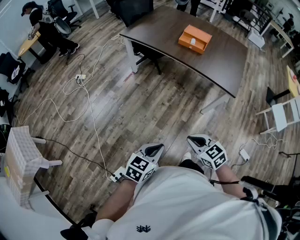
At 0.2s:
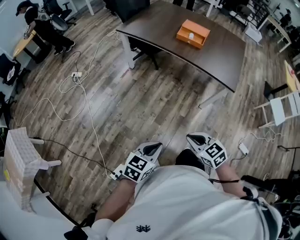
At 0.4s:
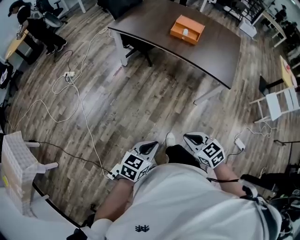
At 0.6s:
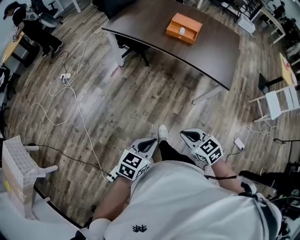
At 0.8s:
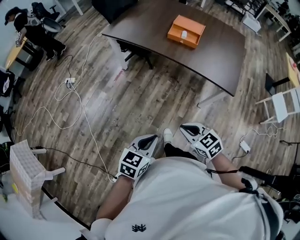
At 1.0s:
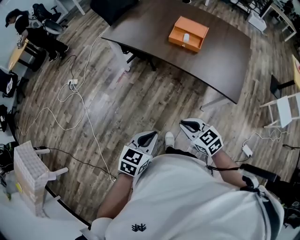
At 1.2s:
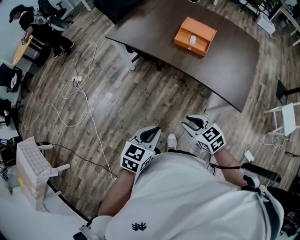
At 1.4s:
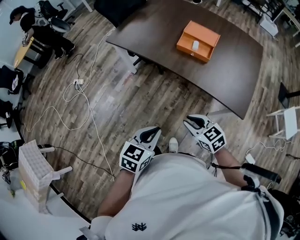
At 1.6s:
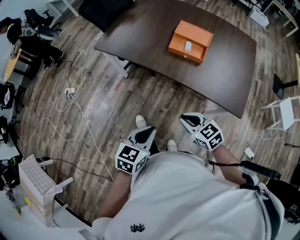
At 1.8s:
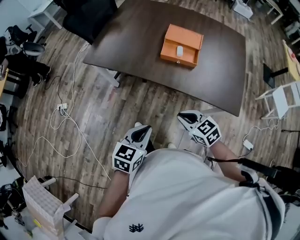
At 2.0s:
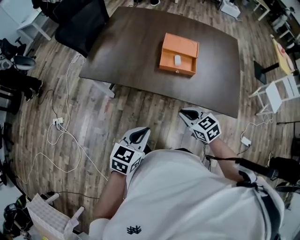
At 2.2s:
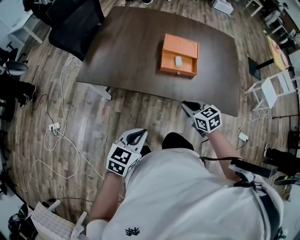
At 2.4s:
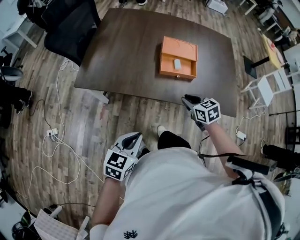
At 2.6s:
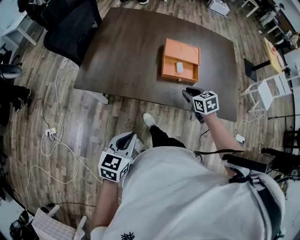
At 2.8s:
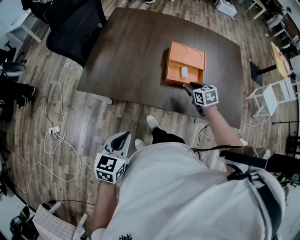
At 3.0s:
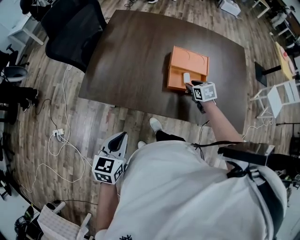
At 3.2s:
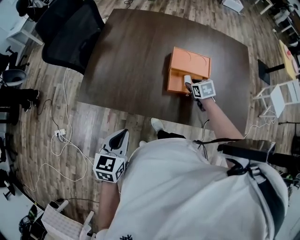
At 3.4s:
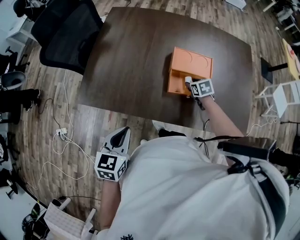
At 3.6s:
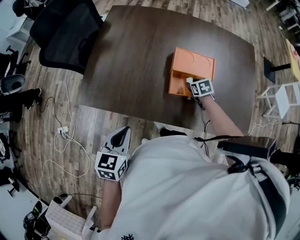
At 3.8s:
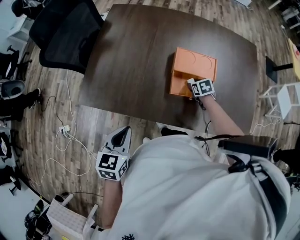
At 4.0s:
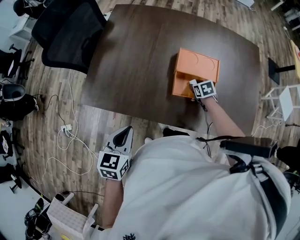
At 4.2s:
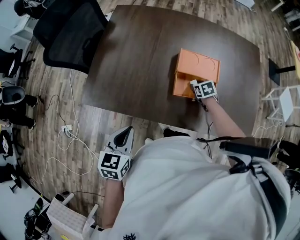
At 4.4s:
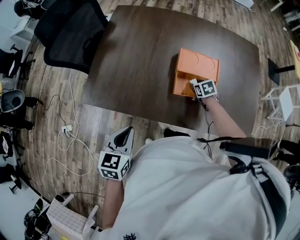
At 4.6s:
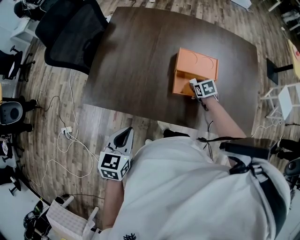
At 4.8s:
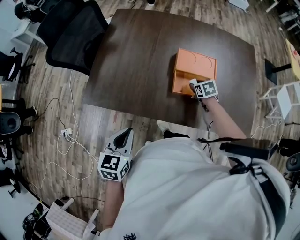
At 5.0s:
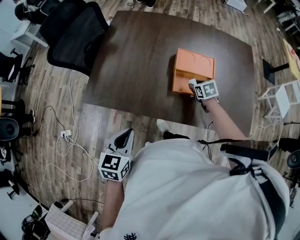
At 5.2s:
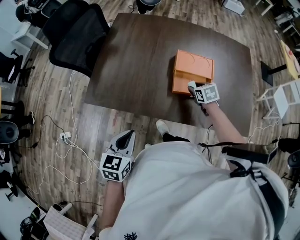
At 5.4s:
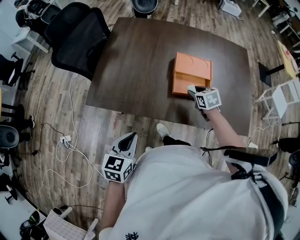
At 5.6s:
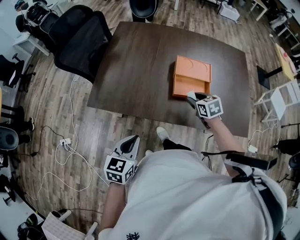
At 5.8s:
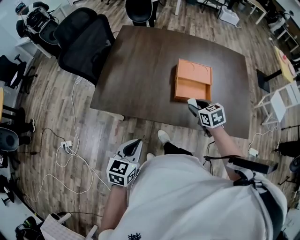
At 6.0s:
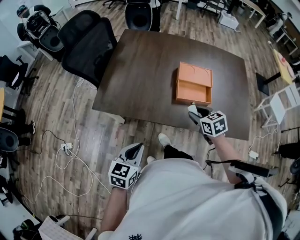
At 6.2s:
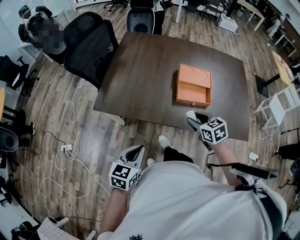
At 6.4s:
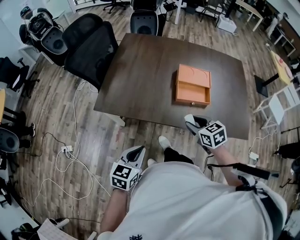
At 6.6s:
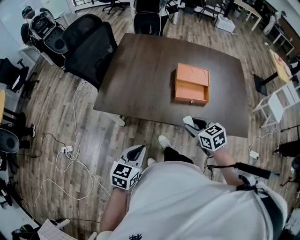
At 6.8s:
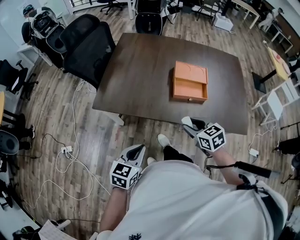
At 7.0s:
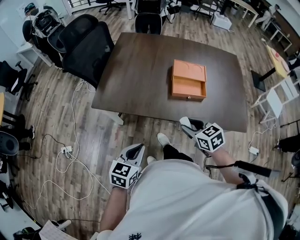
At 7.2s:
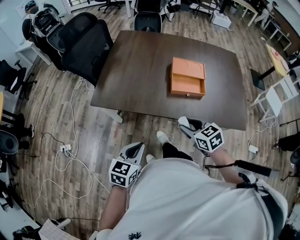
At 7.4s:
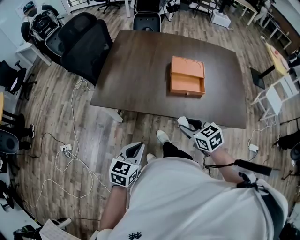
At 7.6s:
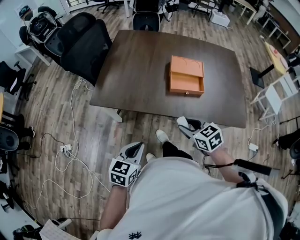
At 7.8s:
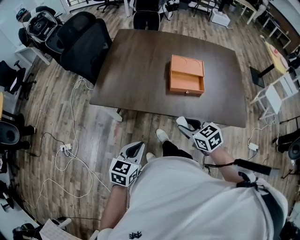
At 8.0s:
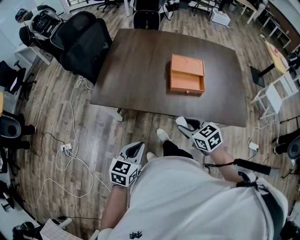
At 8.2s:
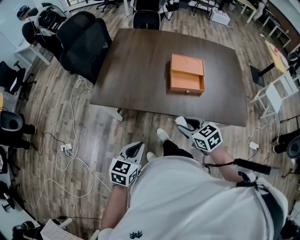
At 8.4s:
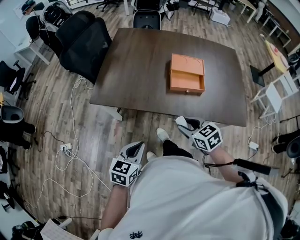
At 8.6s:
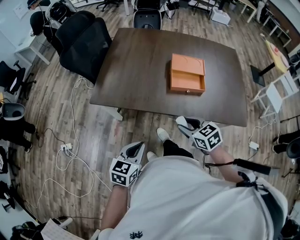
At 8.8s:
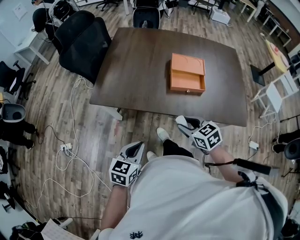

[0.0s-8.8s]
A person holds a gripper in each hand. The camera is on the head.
0.0s to 1.4s: The grippers both shift forward by approximately 35 cm.
1.4s to 3.0s: Both grippers are carried approximately 50 cm. The right gripper rotates about 40 degrees.
3.0s to 4.4s: The right gripper heads downward and forward, covering about 10 cm. Meanwhile the left gripper goes some 10 cm forward.
4.4s to 5.8s: The left gripper goes some 10 cm backward. The right gripper travels backward, upward and to the left by roughly 25 cm.
5.8s to 7.4s: The left gripper shifts some 10 cm backward. Meanwhile the right gripper shifts approximately 20 cm backward.
7.4s to 8.8s: There are only small adjustments of the grippers.

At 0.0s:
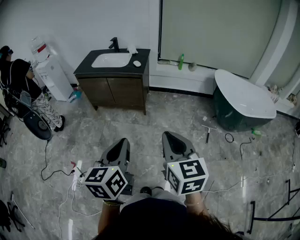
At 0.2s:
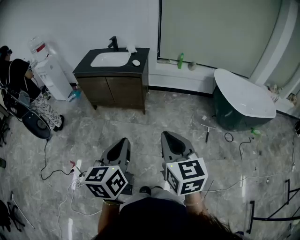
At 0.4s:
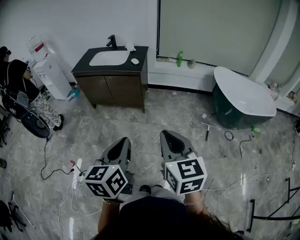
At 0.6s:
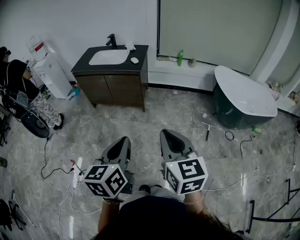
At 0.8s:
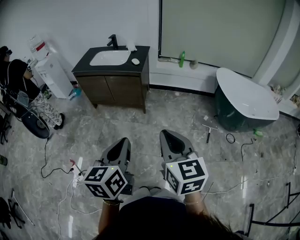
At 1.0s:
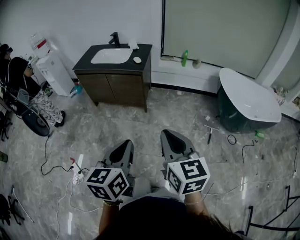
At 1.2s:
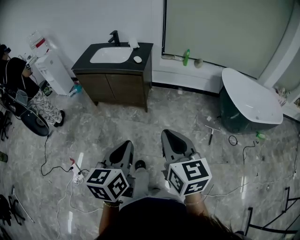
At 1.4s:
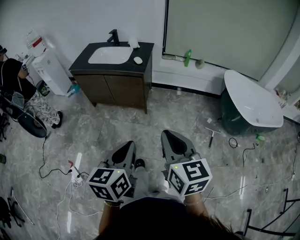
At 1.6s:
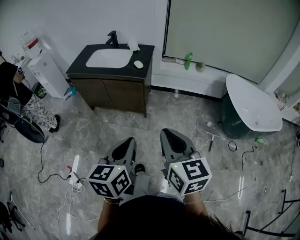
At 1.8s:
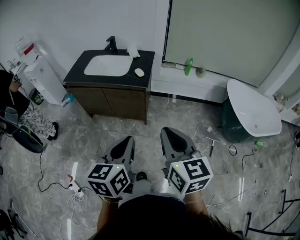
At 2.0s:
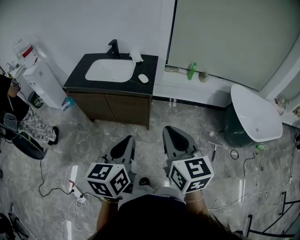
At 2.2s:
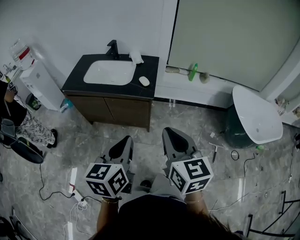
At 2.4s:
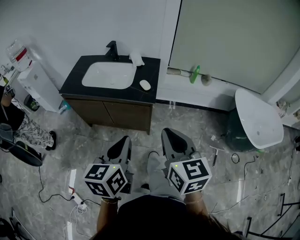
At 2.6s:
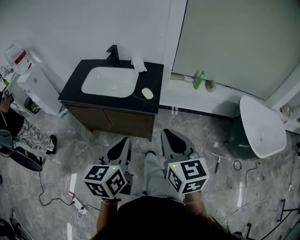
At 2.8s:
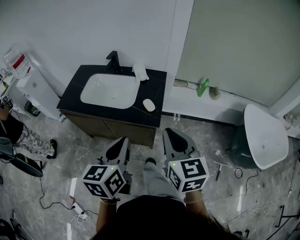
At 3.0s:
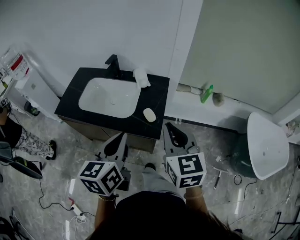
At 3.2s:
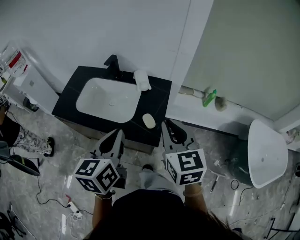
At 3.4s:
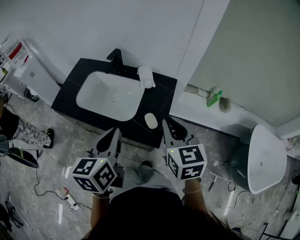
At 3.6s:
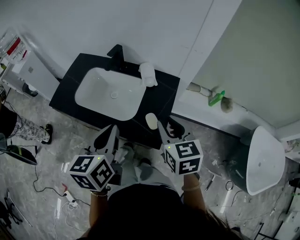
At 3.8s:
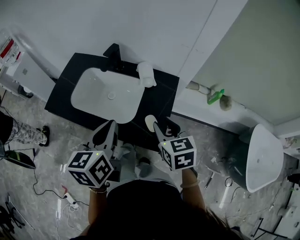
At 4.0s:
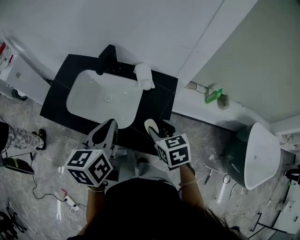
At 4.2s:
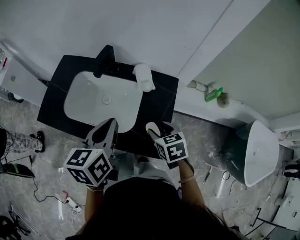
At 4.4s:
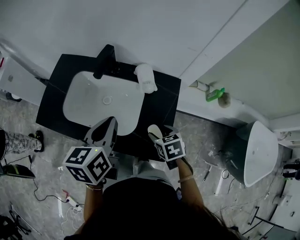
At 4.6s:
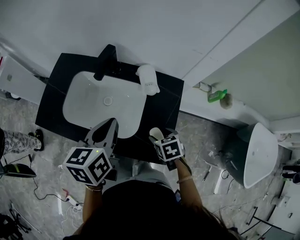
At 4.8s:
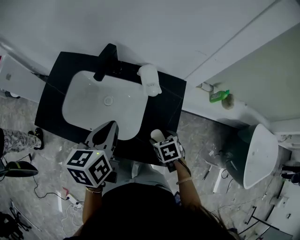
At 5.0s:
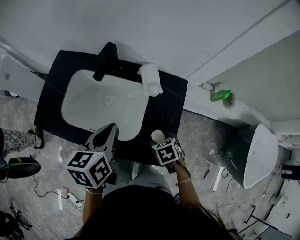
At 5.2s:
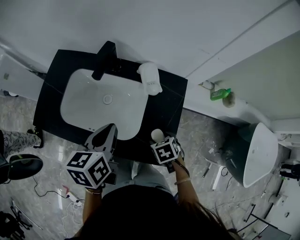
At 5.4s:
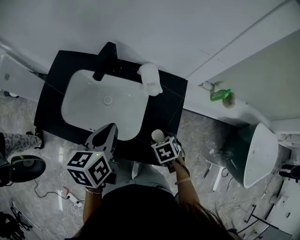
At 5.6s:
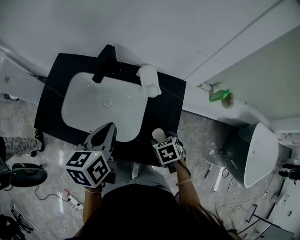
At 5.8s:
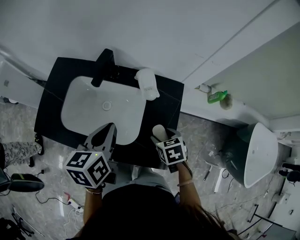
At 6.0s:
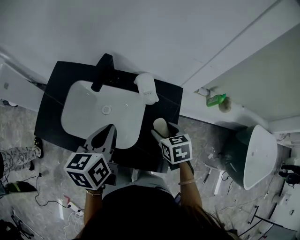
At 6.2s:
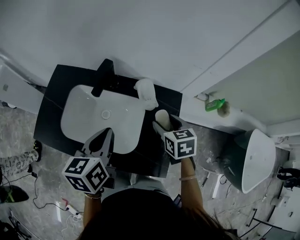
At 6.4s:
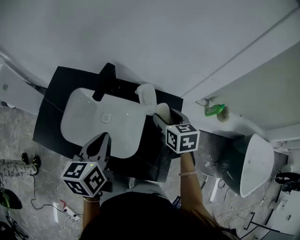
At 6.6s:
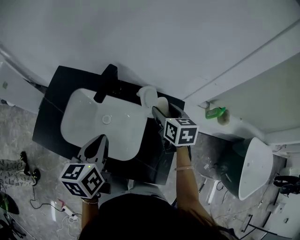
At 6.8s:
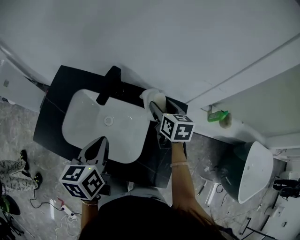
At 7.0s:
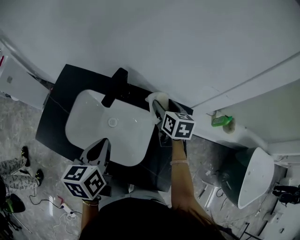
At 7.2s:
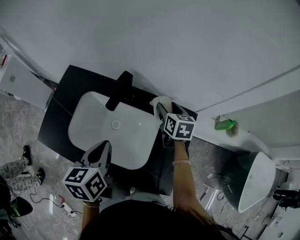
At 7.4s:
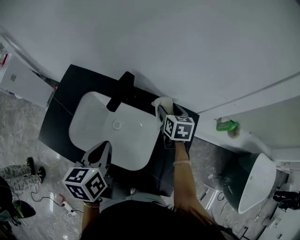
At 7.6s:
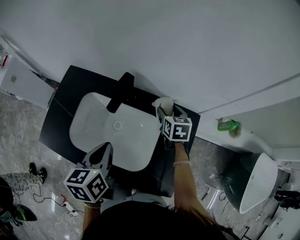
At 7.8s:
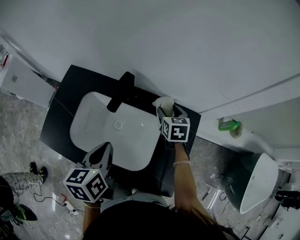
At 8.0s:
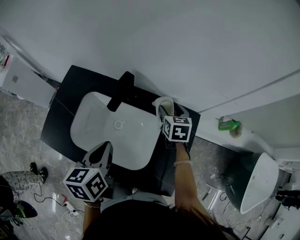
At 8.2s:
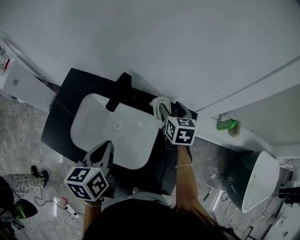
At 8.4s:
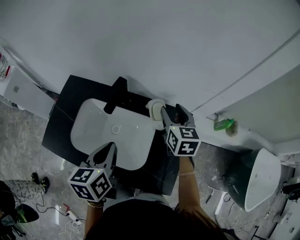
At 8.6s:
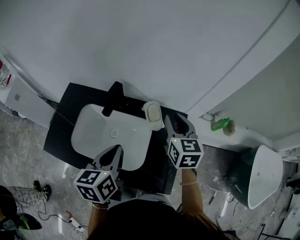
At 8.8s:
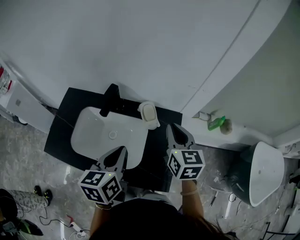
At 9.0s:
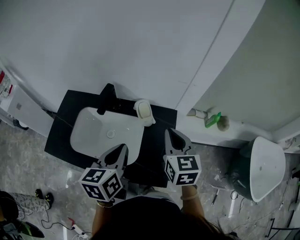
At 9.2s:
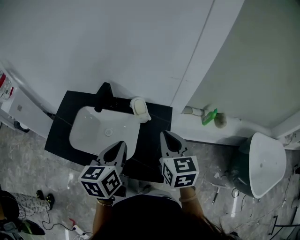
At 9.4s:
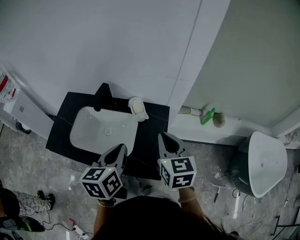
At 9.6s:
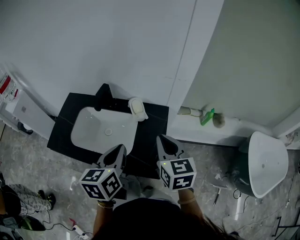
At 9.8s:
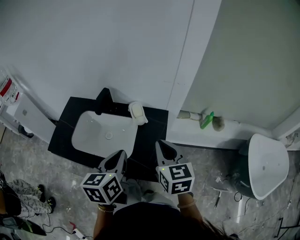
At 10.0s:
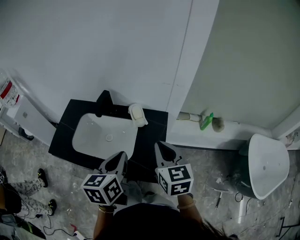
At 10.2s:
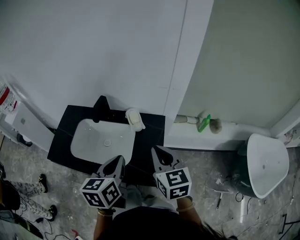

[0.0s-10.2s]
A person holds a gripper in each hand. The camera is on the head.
0.0s to 1.4s: The right gripper heads forward, covering roughly 15 cm, while the left gripper moves forward and downward, roughly 15 cm.
1.4s to 3.0s: The pair of grippers is taken forward, some 60 cm.
3.0s to 4.4s: The right gripper heads downward and forward, covering approximately 35 cm, tilts its fingers approximately 40 degrees downward, and opens; the left gripper shifts approximately 25 cm forward.
4.4s to 5.8s: The left gripper shifts by approximately 5 cm.
5.8s to 7.2s: The left gripper shifts some 5 cm to the left; the right gripper travels forward by approximately 25 cm, and turns by about 30 degrees.
7.2s to 8.8s: The right gripper is displaced upward and backward by about 20 cm, and closes its fingers; the left gripper moves to the right and upward, roughly 10 cm.
8.8s to 10.2s: The left gripper travels backward and to the right by some 10 cm. Meanwhile the right gripper shifts approximately 15 cm backward.

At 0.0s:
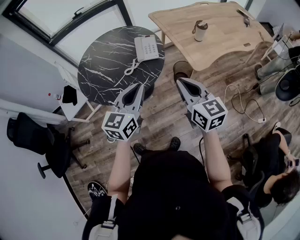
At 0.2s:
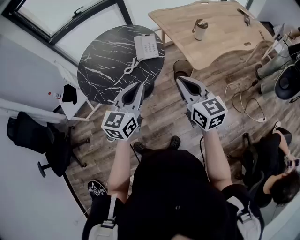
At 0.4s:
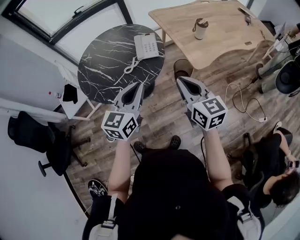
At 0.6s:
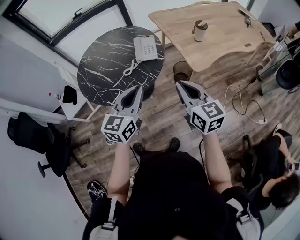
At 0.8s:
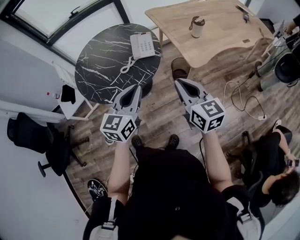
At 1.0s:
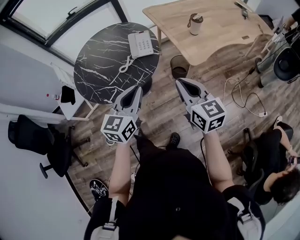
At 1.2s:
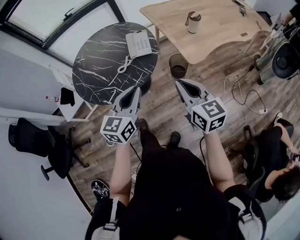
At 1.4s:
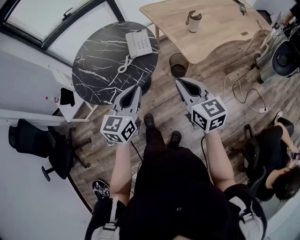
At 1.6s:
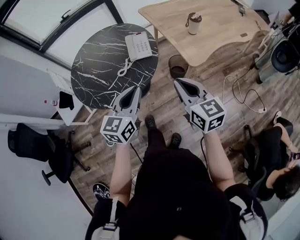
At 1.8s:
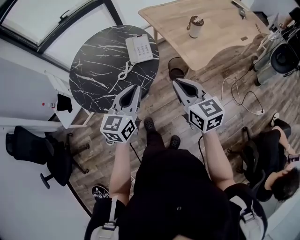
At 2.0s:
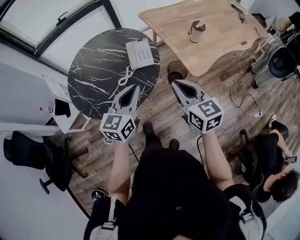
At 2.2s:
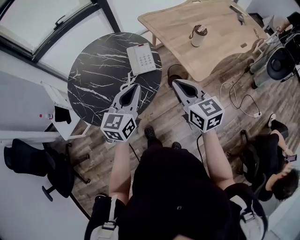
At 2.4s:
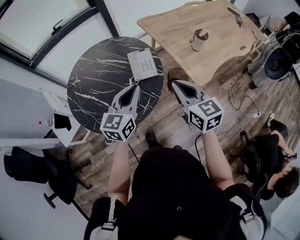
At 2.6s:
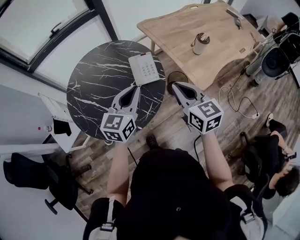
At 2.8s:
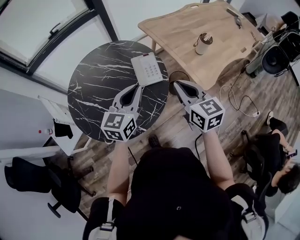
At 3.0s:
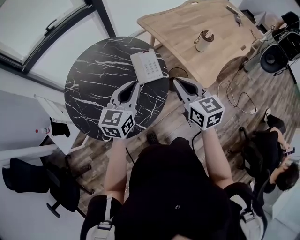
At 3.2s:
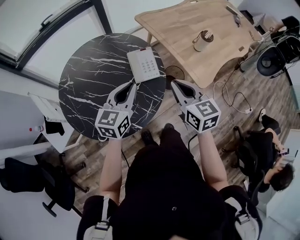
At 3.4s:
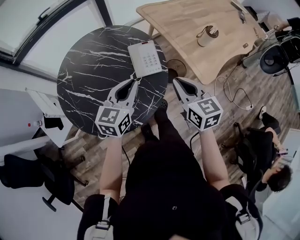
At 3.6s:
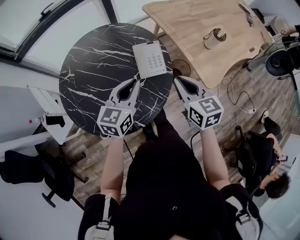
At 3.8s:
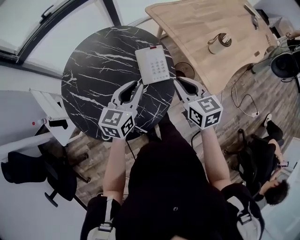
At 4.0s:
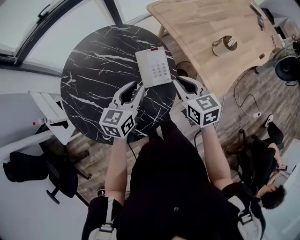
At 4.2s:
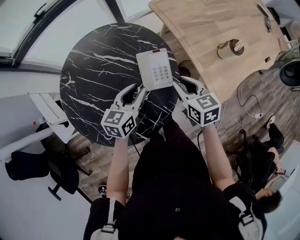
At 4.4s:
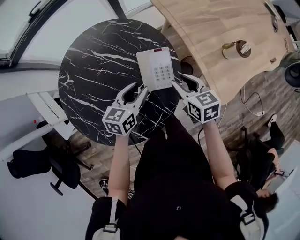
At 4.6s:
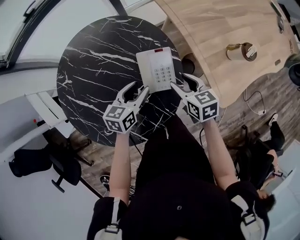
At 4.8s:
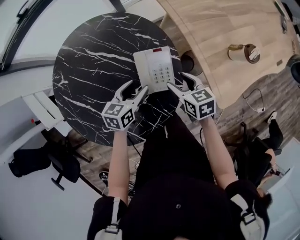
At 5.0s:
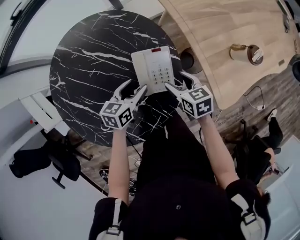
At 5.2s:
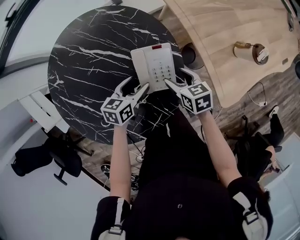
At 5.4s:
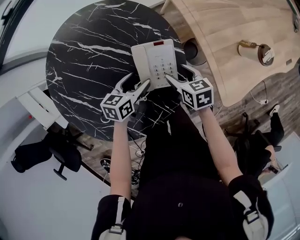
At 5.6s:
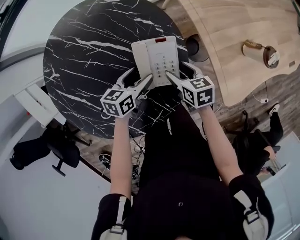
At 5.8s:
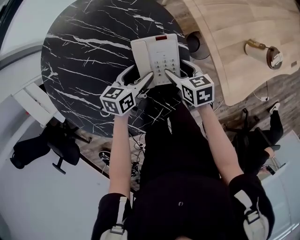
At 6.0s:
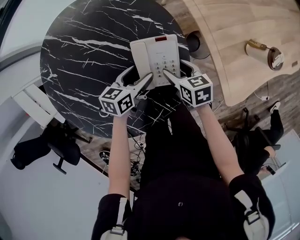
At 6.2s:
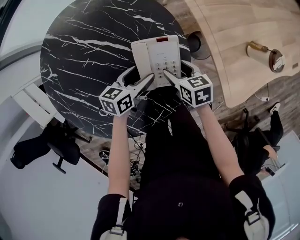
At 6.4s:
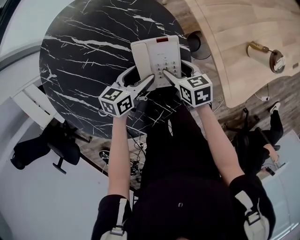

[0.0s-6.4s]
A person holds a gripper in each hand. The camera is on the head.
0.0s to 1.6s: The grippers stay close to where they were, moving slightly.
1.6s to 3.2s: The two grippers go some 25 cm forward and to the left.
3.2s to 4.8s: Both grippers move downward and forward, approximately 30 cm. The right gripper changes its angle by roughly 30 degrees, and opens. Meanwhile the left gripper turns by about 30 degrees, and opens its fingers.
4.8s to 6.4s: The two grippers go about 10 cm downward.
